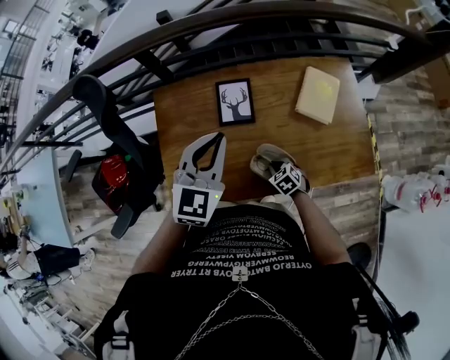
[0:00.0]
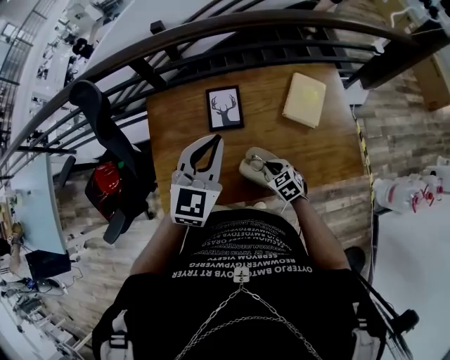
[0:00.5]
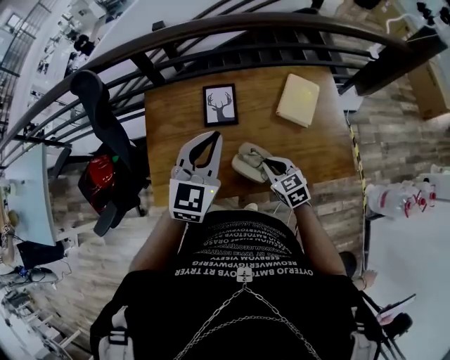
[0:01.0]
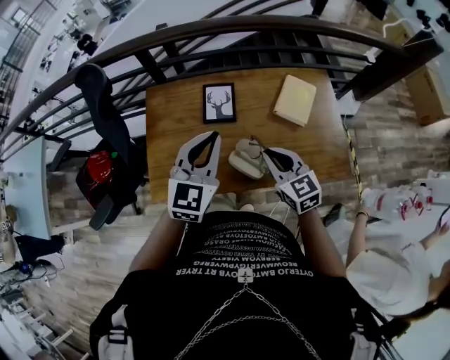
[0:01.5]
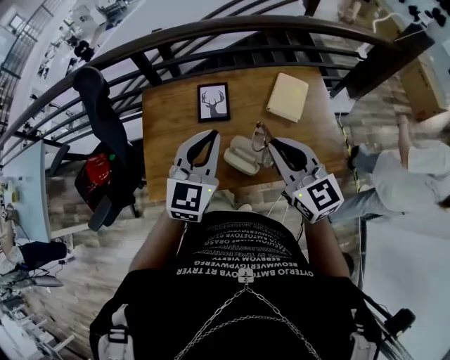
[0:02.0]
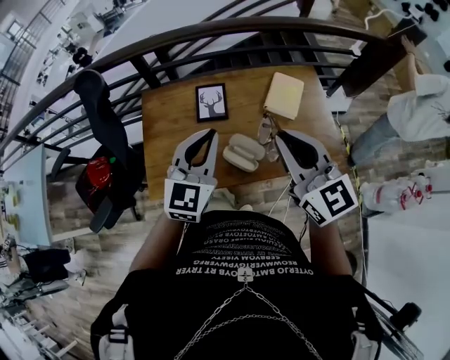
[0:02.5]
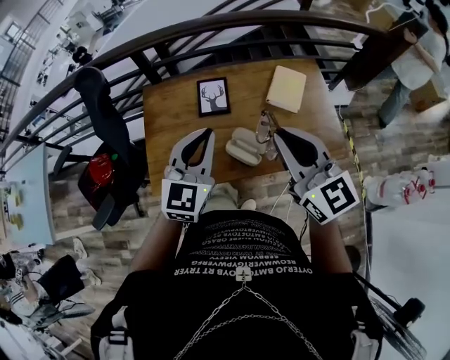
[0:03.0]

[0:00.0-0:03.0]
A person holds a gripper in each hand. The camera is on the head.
0:00.0 to 0:01.5: The left gripper moves backward, roughly 10 cm, while the right gripper heads upward, covering roughly 30 cm, and points its fingers approximately 40 degrees further upward.
0:01.5 to 0:03.0: The right gripper travels upward by approximately 20 cm, and turns by about 20 degrees. Meanwhile the left gripper shifts some 5 cm backward.

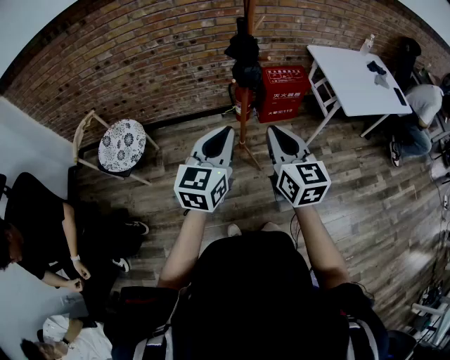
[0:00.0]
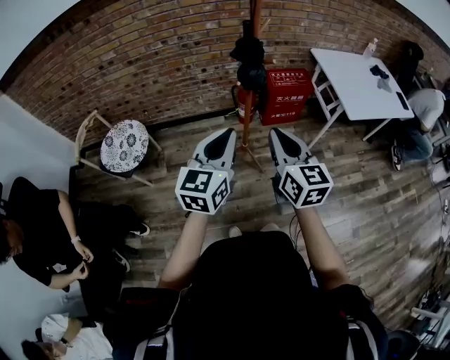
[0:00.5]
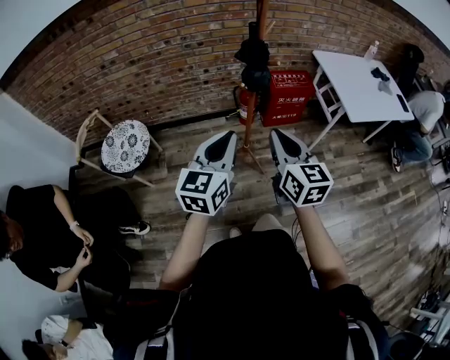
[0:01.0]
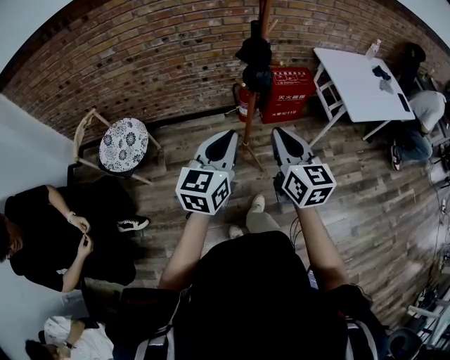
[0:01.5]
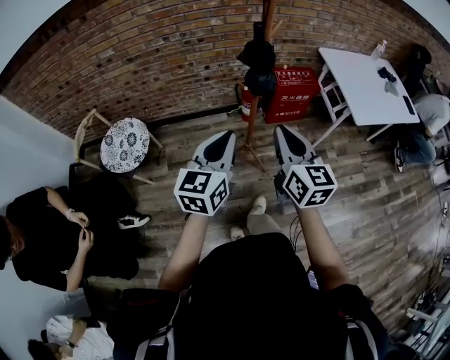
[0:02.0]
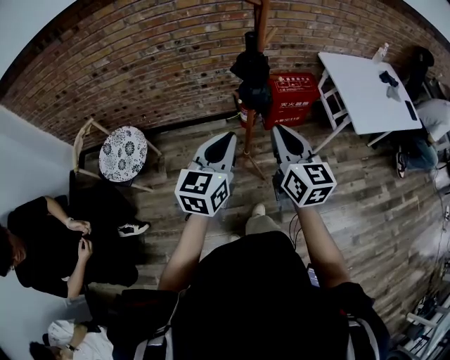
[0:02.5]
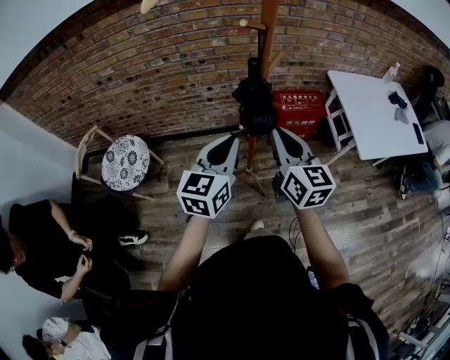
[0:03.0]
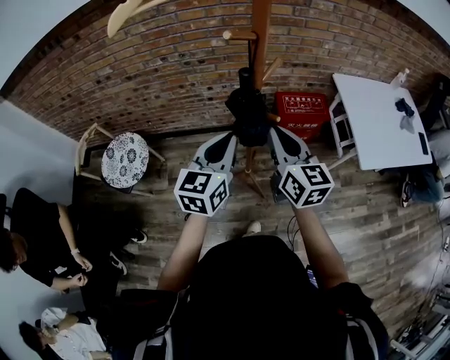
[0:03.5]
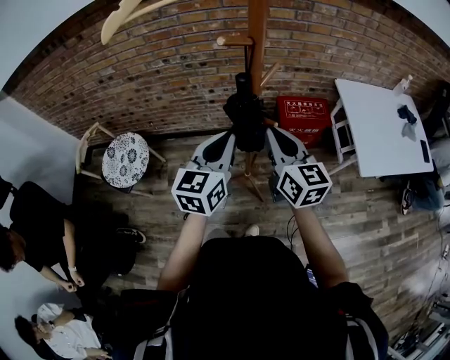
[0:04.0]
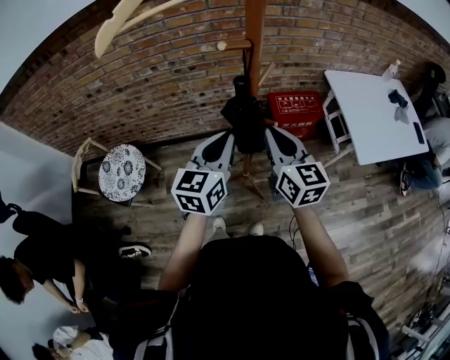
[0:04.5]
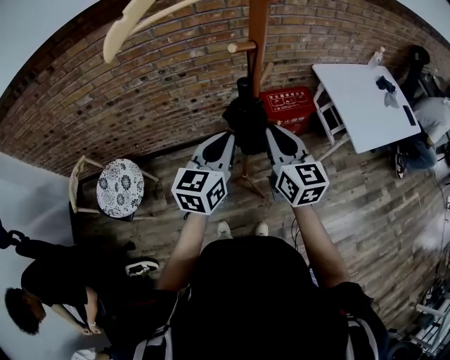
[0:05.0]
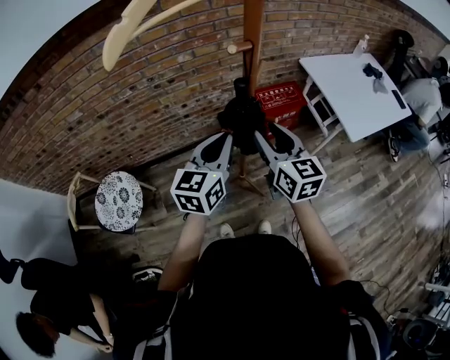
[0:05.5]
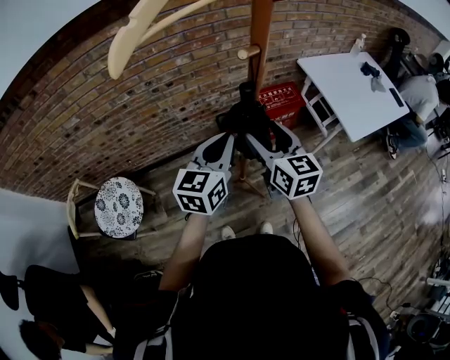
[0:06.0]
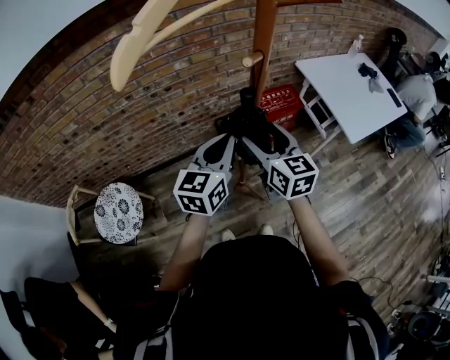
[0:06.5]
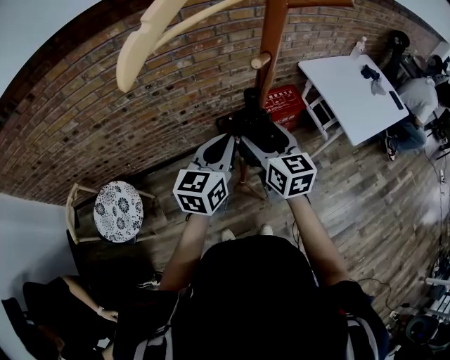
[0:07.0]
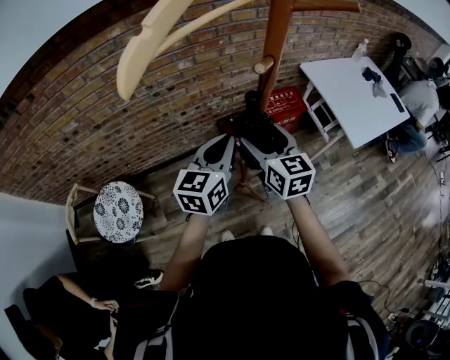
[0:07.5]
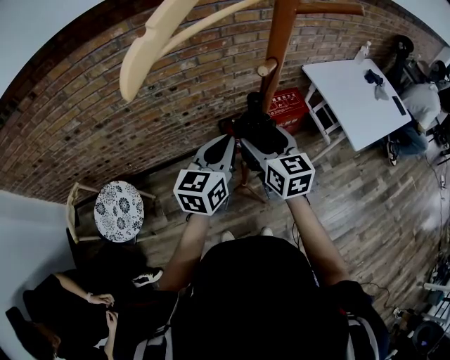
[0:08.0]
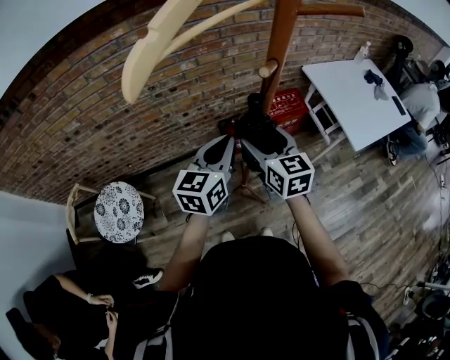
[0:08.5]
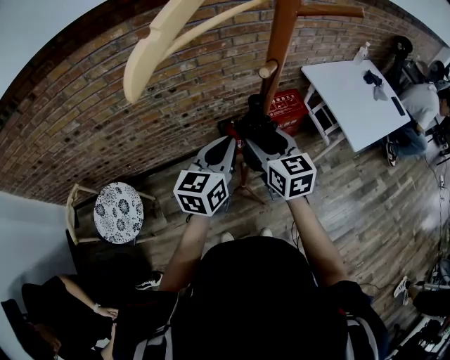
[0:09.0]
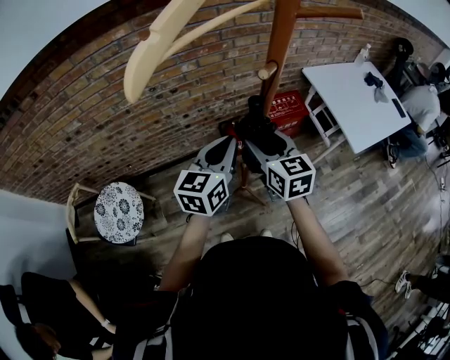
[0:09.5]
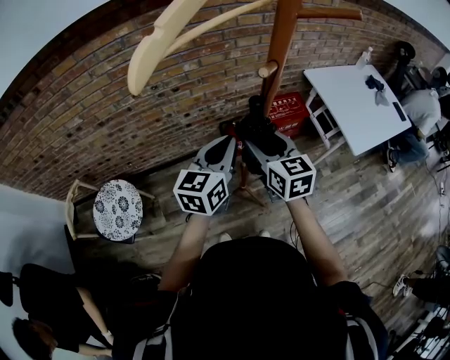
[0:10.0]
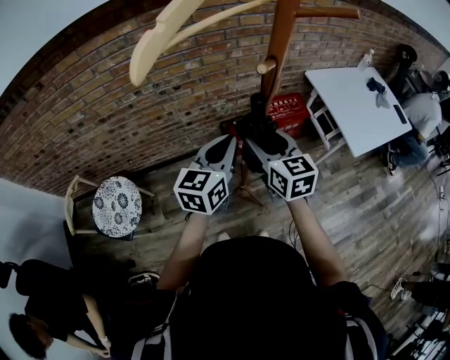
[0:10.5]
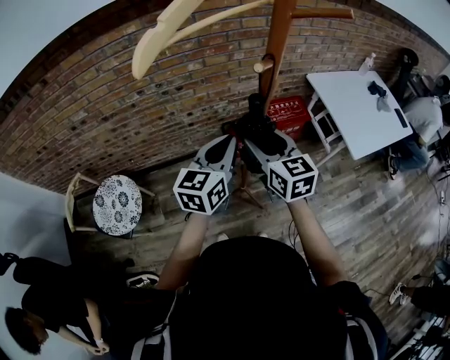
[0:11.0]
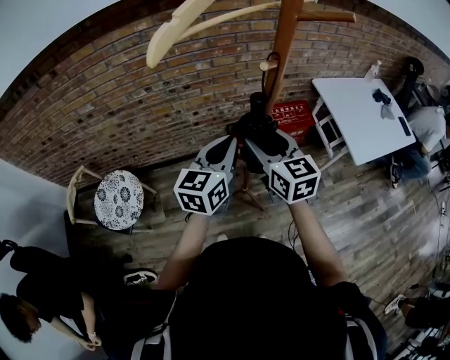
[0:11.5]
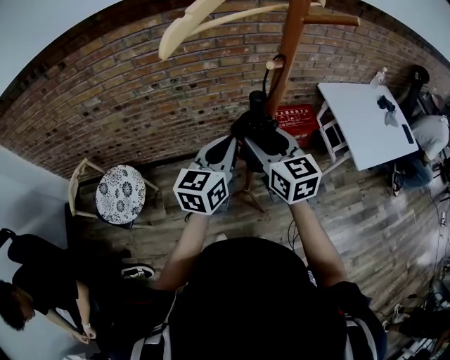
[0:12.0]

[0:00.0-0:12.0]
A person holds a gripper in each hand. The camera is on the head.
0:00.0 to 0:02.0: The right gripper travels forward by roughly 5 cm. The left gripper shifts by approximately 5 cm.
0:02.0 to 0:04.0: Both grippers move forward, approximately 20 cm.
0:04.0 to 0:06.0: The right gripper shifts by approximately 5 cm, and opens. The left gripper moves roughly 5 cm, and rotates roughly 20 degrees.
0:06.0 to 0:08.0: The right gripper ends up some 5 cm from where it was.
0:08.0 to 0:10.0: Neither gripper changes place.
0:10.0 to 0:12.0: The right gripper is displaced upward by some 5 cm.

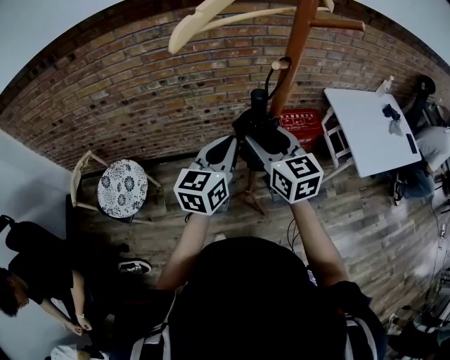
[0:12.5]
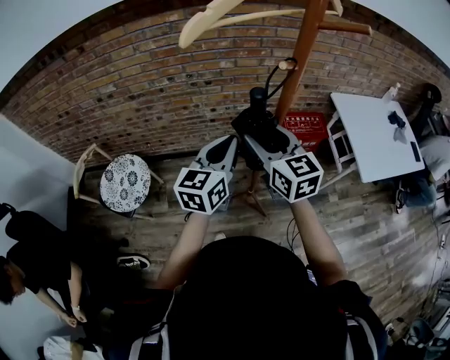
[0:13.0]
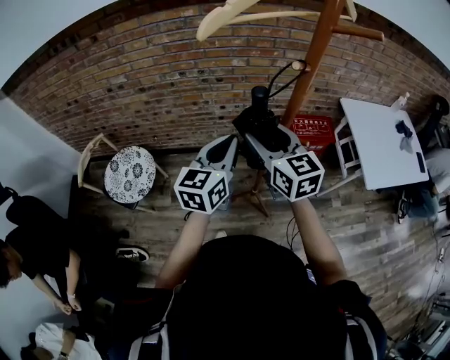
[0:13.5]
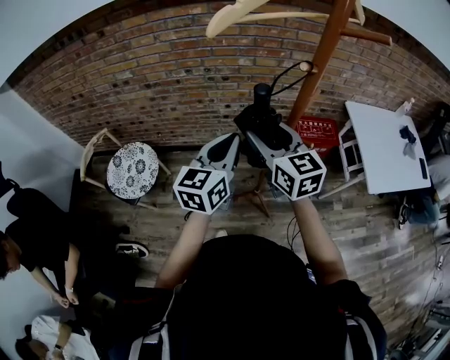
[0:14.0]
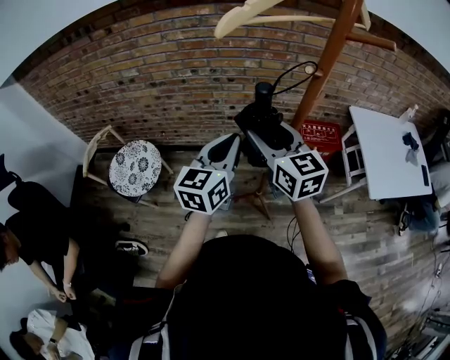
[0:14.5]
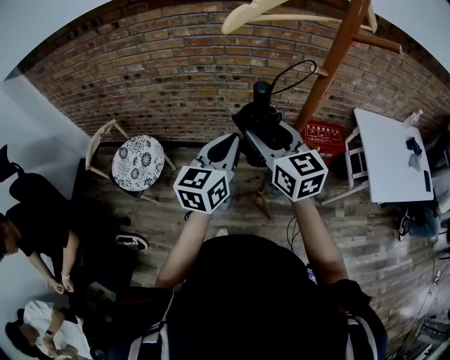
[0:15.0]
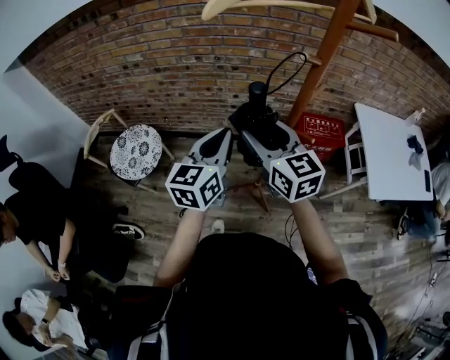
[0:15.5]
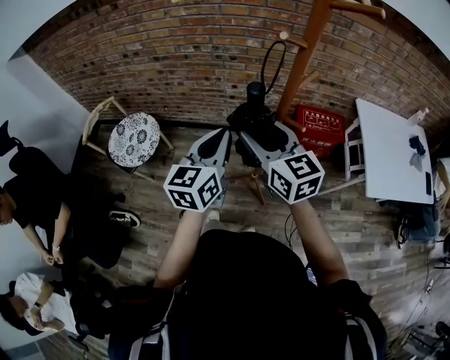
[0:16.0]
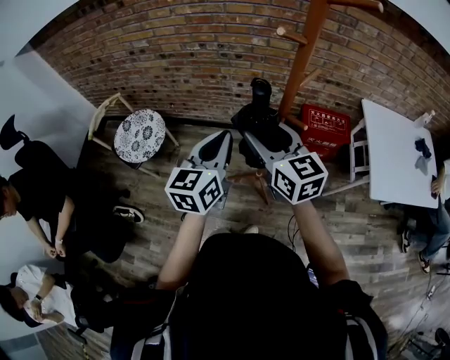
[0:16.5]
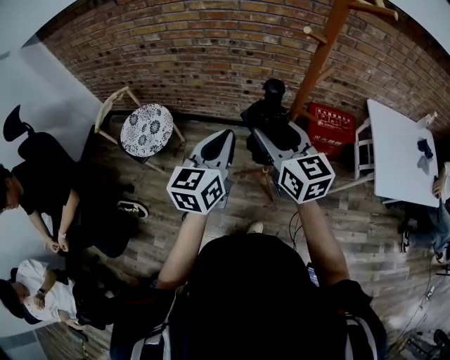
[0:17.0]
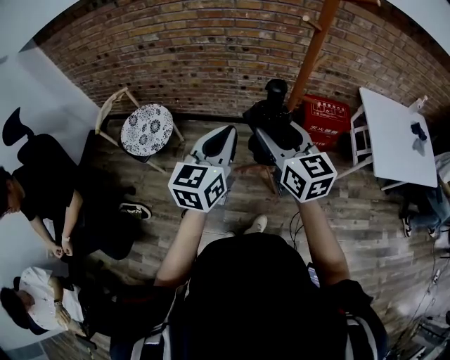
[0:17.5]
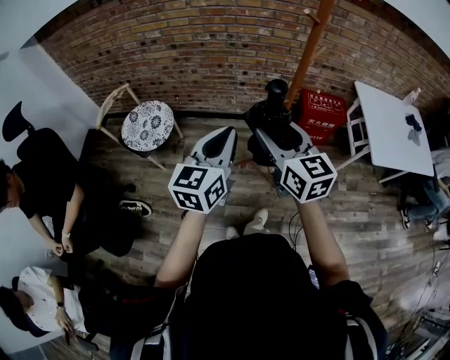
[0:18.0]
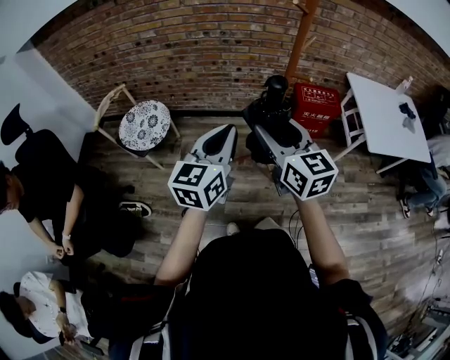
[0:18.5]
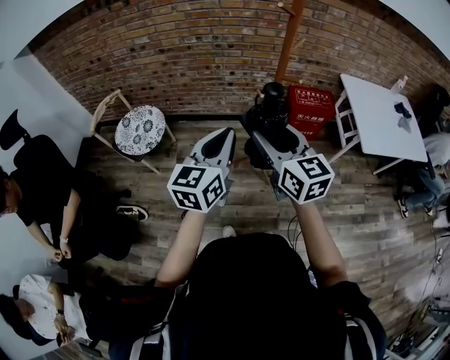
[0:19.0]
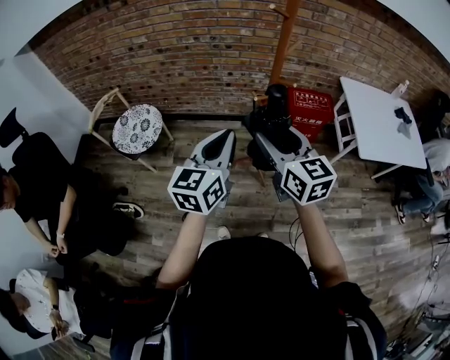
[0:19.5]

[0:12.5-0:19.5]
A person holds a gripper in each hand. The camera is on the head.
0:12.5 to 0:14.5: The left gripper ends up some 5 cm from where it was, while the right gripper is displaced to the left by roughly 5 cm.
0:14.5 to 0:16.0: Both grippers travel together backward, approximately 5 cm.
0:16.0 to 0:17.5: The right gripper heads backward, covering some 10 cm. Meanwhile the left gripper heads backward and to the left, covering some 10 cm.
0:17.5 to 0:19.5: The grippers both shift backward by some 10 cm.

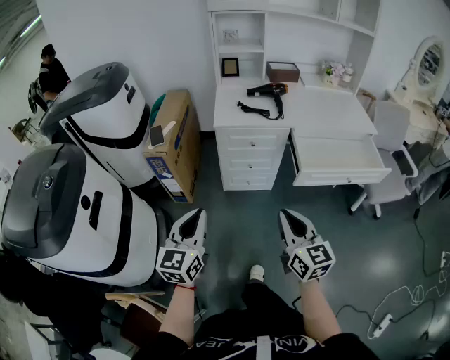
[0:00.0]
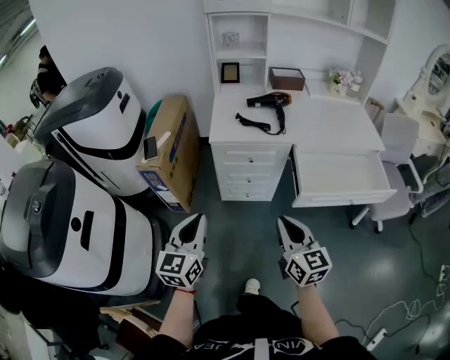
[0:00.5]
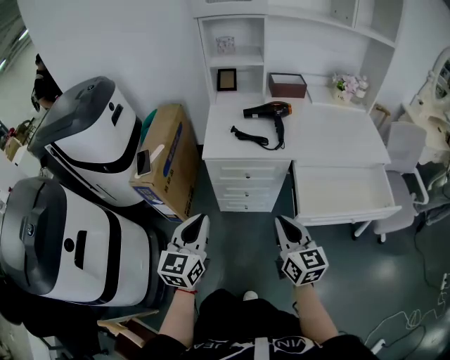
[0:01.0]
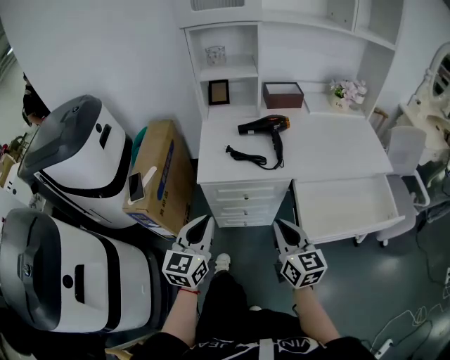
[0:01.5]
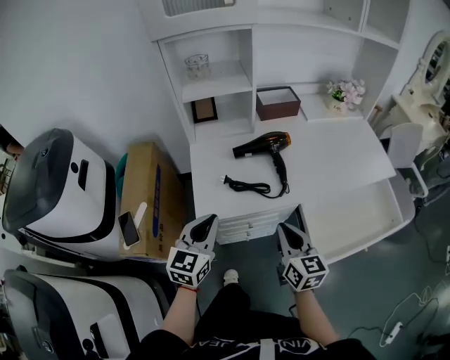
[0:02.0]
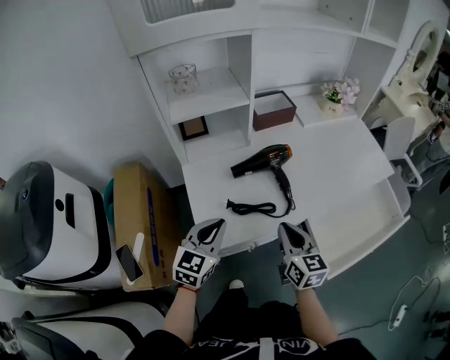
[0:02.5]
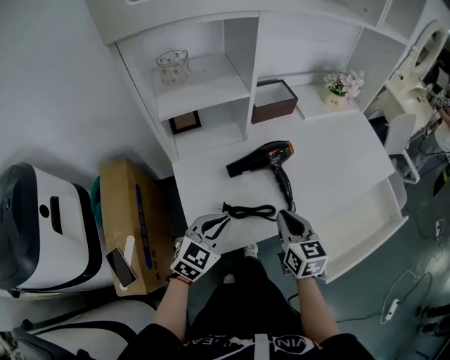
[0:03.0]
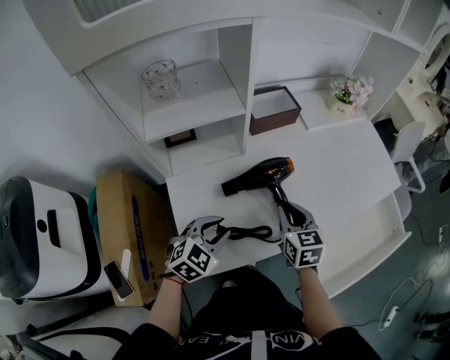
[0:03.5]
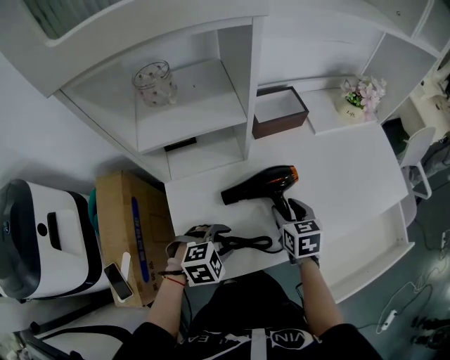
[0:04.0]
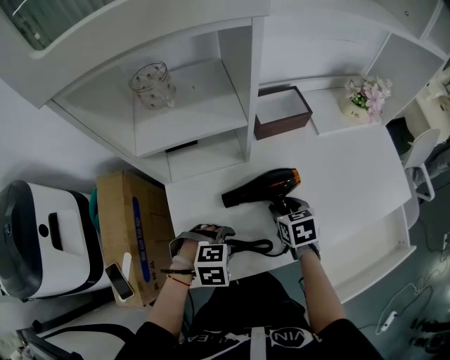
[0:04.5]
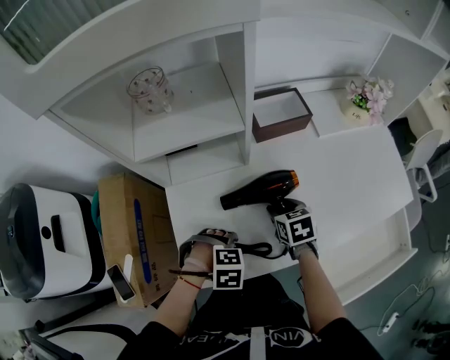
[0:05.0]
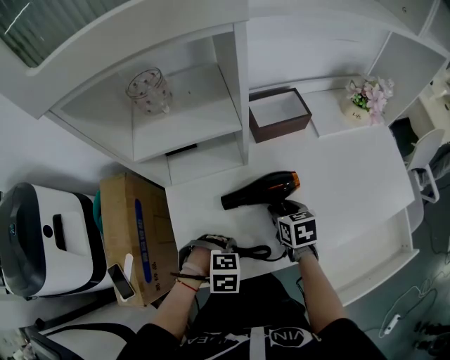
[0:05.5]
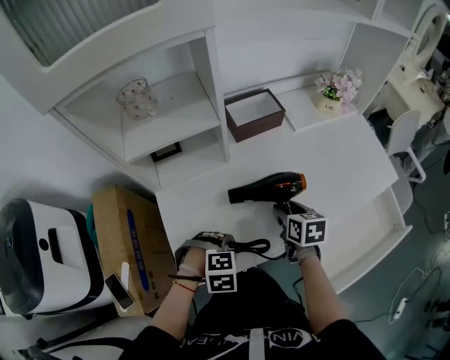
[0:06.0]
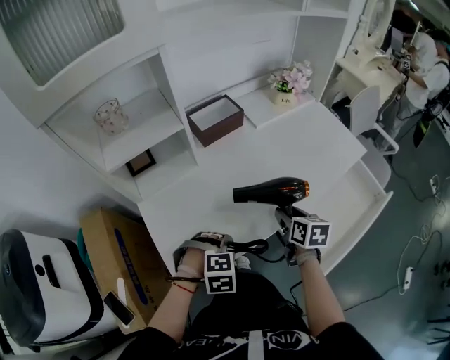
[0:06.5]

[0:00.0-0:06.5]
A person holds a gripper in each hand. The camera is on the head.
0:00.0 to 0:02.0: The pair of grippers is taken forward, approximately 50 cm. The left gripper turns by roughly 20 degrees.
0:02.0 to 0:04.5: The right gripper changes place by roughly 35 cm, angles its fingers downward, by roughly 40 degrees, and opens up, while the left gripper moves some 25 cm, points its fingers approximately 60 degrees further downward, and opens.
0:04.5 to 0:06.5: The right gripper moves roughly 20 cm, and rotates some 40 degrees. Meanwhile the left gripper changes place by some 10 cm, and turns by some 20 degrees.
